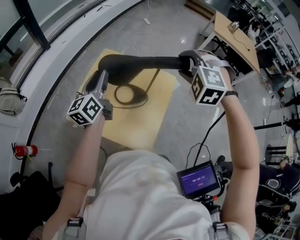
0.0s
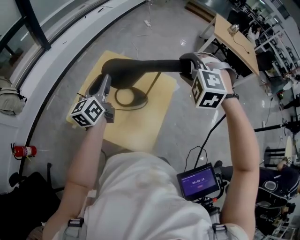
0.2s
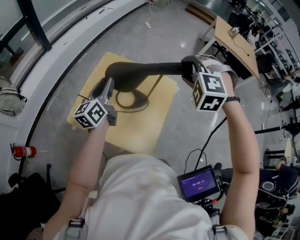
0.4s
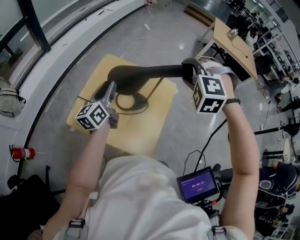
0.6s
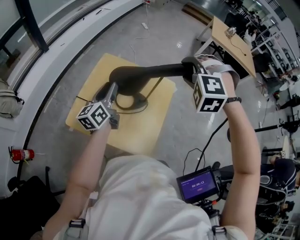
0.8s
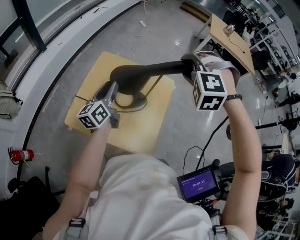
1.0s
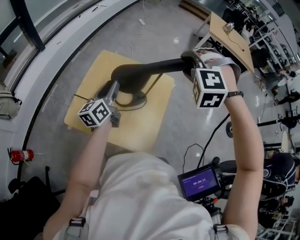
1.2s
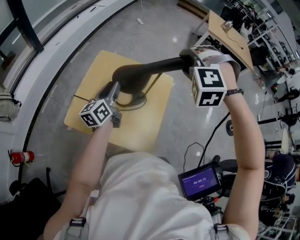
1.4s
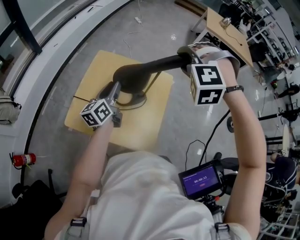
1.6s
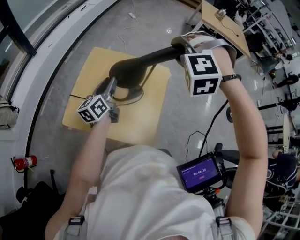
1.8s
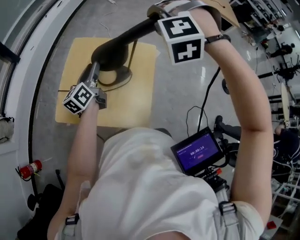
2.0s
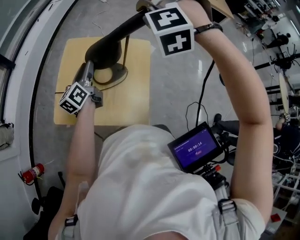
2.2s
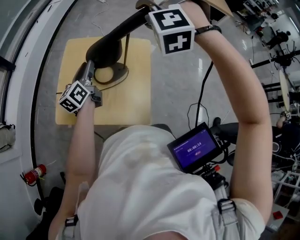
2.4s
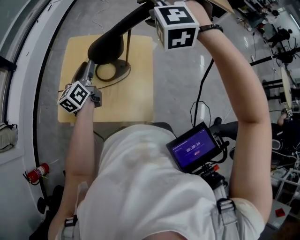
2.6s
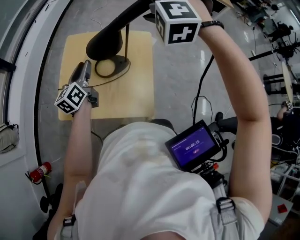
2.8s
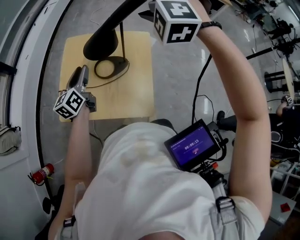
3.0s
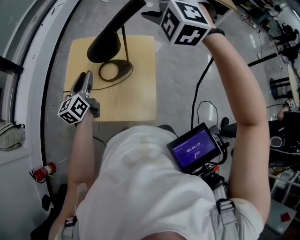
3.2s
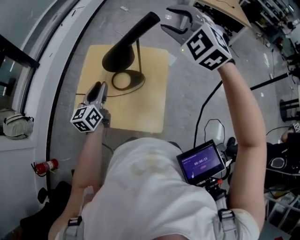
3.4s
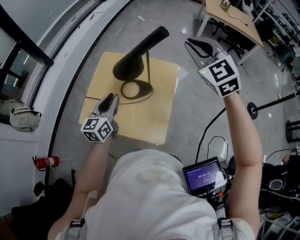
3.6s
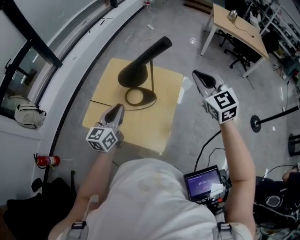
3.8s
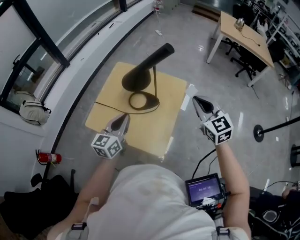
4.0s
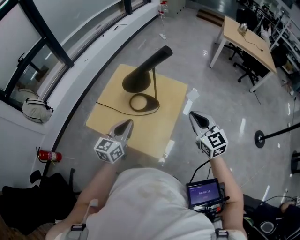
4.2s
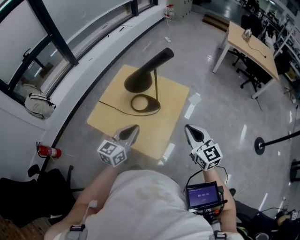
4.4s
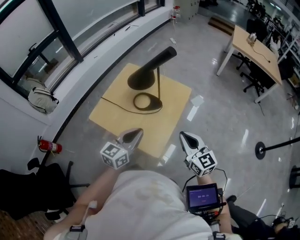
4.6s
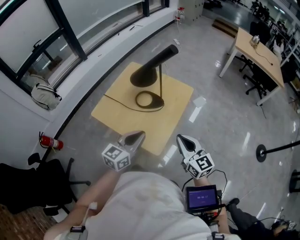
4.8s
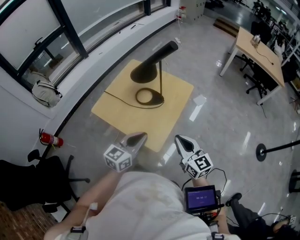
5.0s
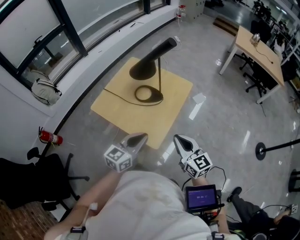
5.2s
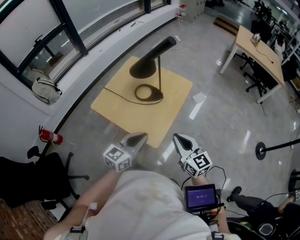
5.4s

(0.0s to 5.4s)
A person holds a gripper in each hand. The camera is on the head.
0.0s - 1.4s: The left gripper goes approximately 10 cm downward.
1.4s - 2.8s: The grippers move only a little.
2.8s - 4.0s: The left gripper travels backward and to the right by roughly 15 cm, and closes up. The right gripper is displaced to the right, backward and downward by about 20 cm, rolls clockwise, seen from behind, by approximately 70 degrees, and closes its fingers.
4.0s - 5.4s: The left gripper is displaced backward and to the right by some 20 cm. The right gripper travels backward and downward by about 20 cm, and swivels about 30 degrees.

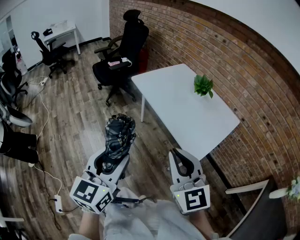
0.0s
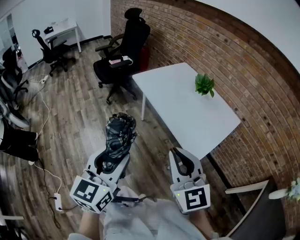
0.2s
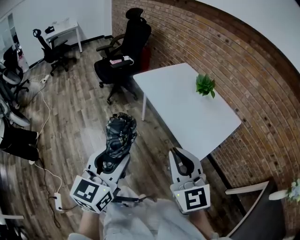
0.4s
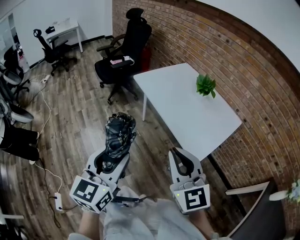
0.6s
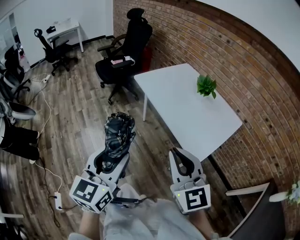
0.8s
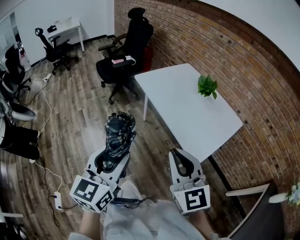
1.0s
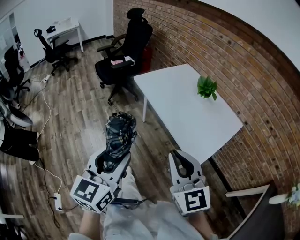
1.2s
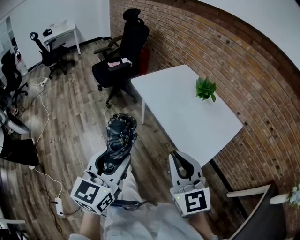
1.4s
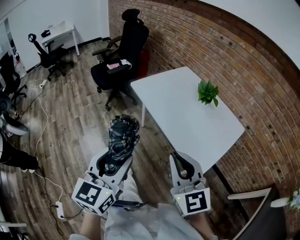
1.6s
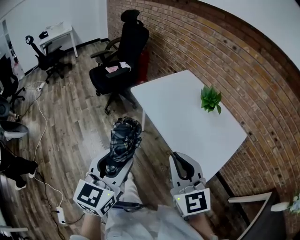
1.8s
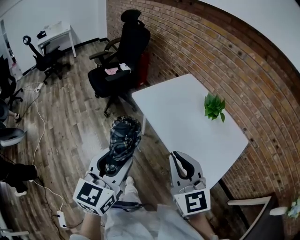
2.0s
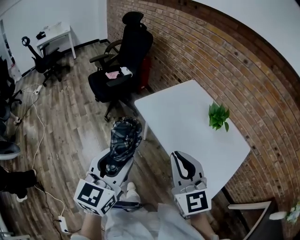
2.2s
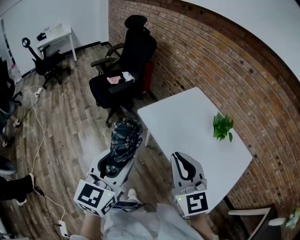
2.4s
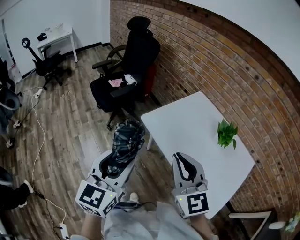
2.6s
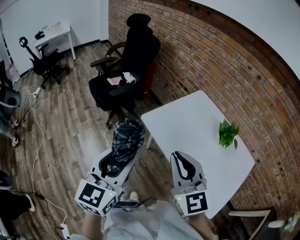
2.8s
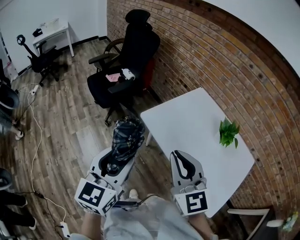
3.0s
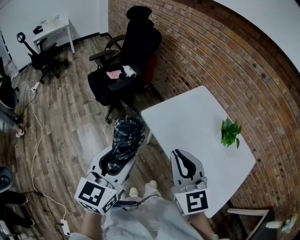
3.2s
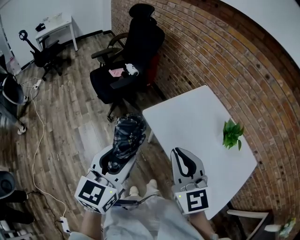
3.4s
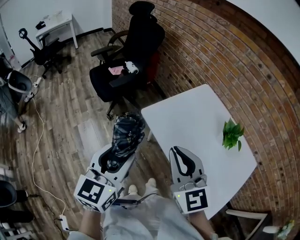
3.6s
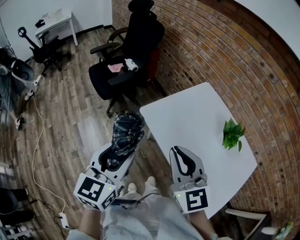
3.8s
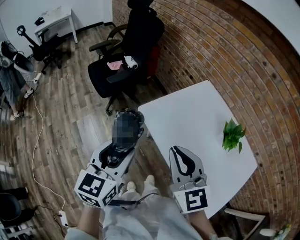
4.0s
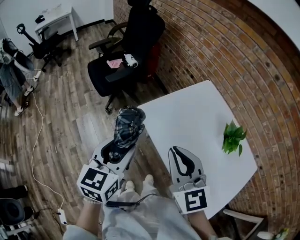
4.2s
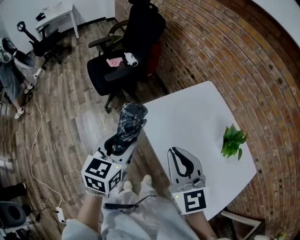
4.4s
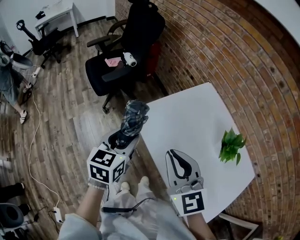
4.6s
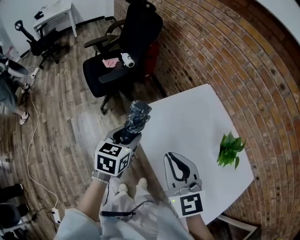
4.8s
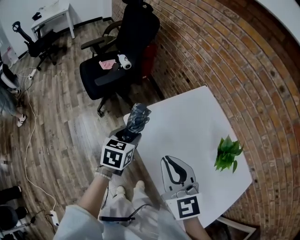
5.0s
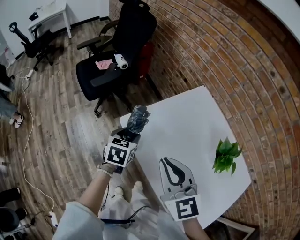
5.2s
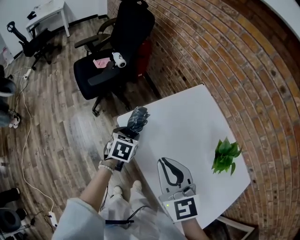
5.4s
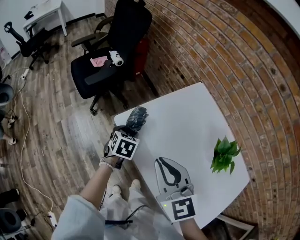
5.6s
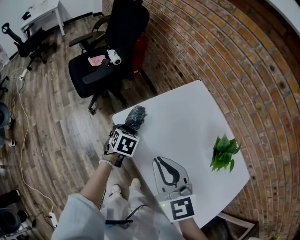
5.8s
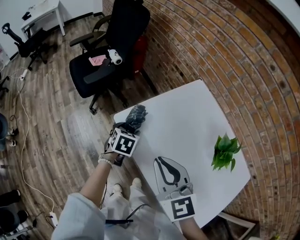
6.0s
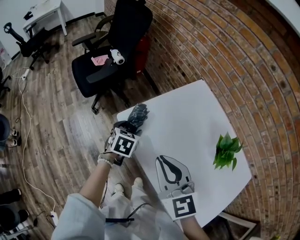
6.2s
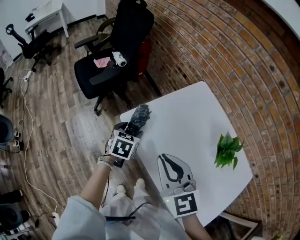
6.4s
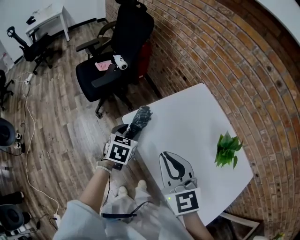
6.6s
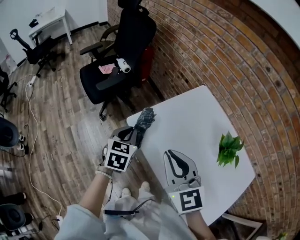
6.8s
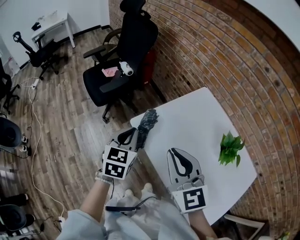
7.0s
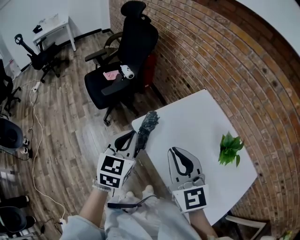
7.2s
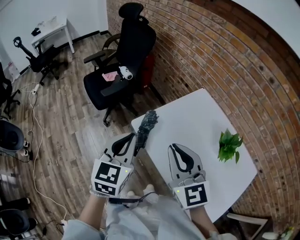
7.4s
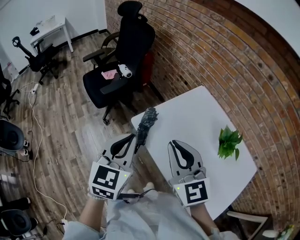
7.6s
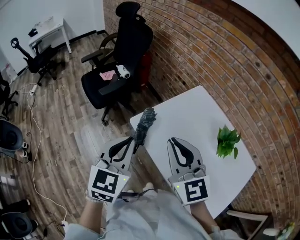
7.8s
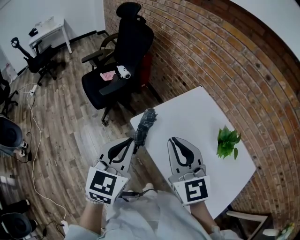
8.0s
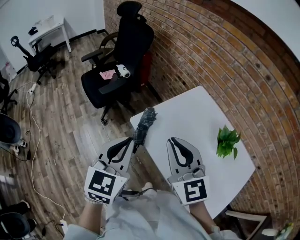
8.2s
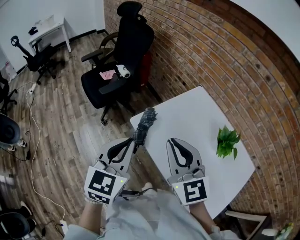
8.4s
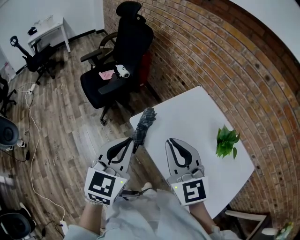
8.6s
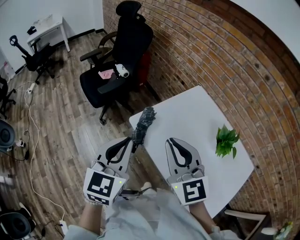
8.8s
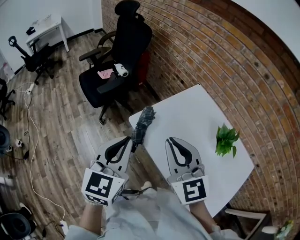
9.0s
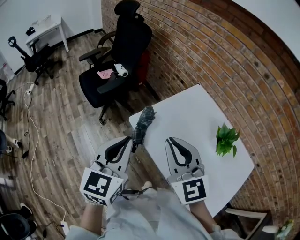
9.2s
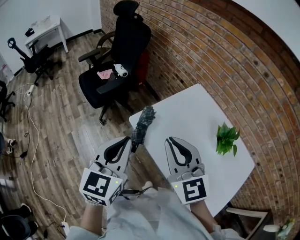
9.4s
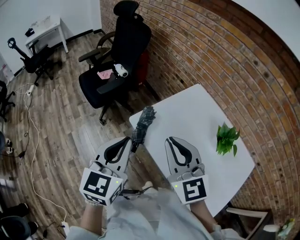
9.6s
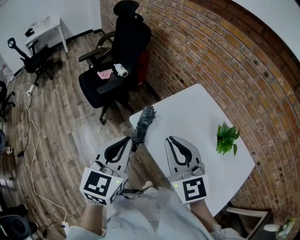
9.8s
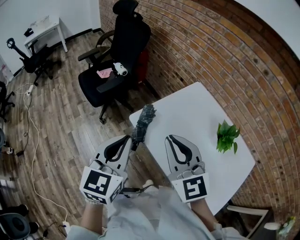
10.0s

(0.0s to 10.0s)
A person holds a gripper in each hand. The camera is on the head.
0.0s - 1.4s: The left gripper heads forward, covering some 5 cm.
1.4s - 2.8s: Both grippers travel together forward and to the left, roughly 40 cm.
2.8s - 4.2s: The left gripper is displaced forward, downward and to the right by approximately 15 cm. The right gripper shifts approximately 10 cm forward.
4.2s - 5.8s: The right gripper heads forward, downward and to the right, covering some 15 cm. The left gripper goes approximately 35 cm downward, forward and to the right, and tilts its fingers some 40 degrees downward.
5.8s - 7.2s: The right gripper moves upward, roughly 10 cm. The left gripper travels upward by approximately 25 cm, points its fingers about 30 degrees further upward, and closes its fingers.
7.2s - 8.6s: The left gripper travels backward and upward by some 10 cm.
8.6s - 10.0s: There are only small adjustments of the grippers.

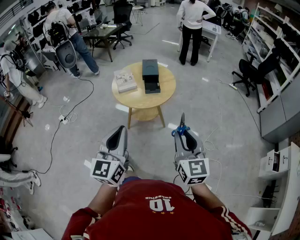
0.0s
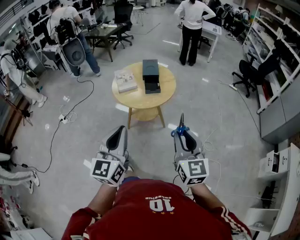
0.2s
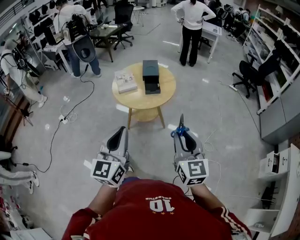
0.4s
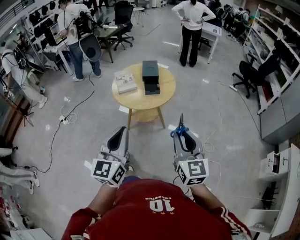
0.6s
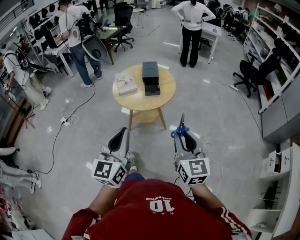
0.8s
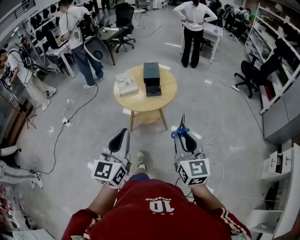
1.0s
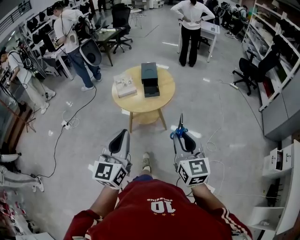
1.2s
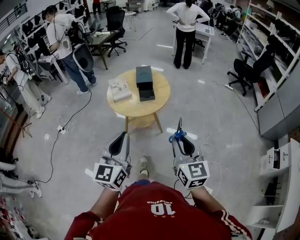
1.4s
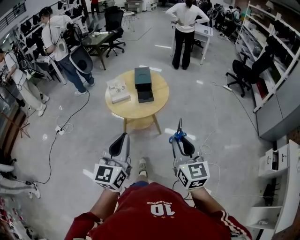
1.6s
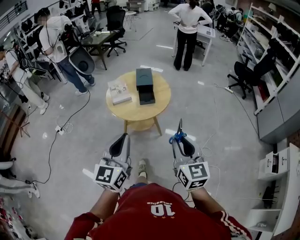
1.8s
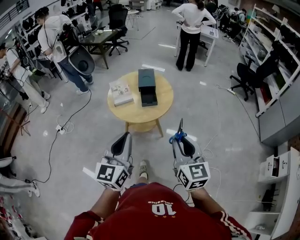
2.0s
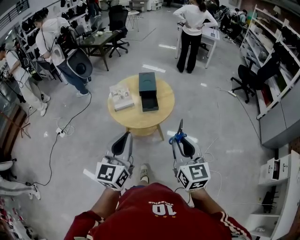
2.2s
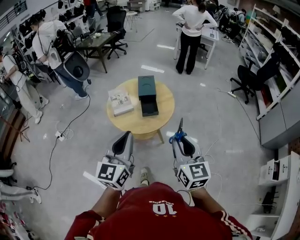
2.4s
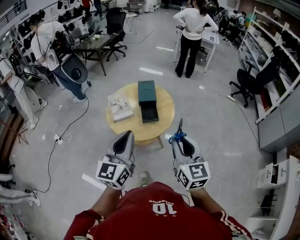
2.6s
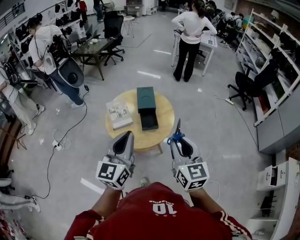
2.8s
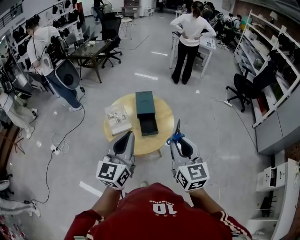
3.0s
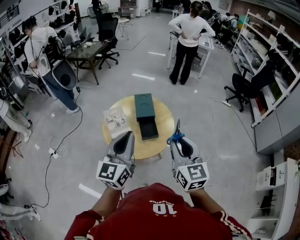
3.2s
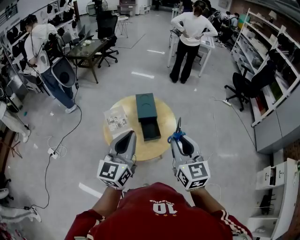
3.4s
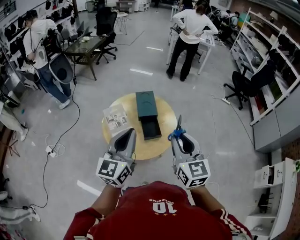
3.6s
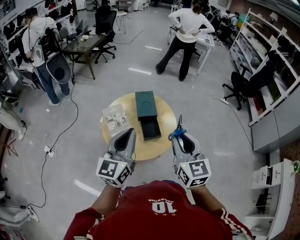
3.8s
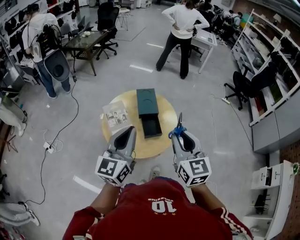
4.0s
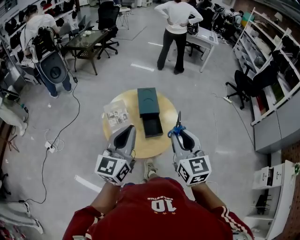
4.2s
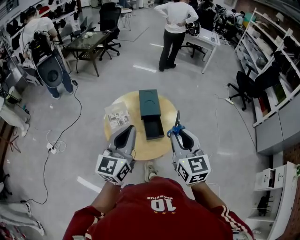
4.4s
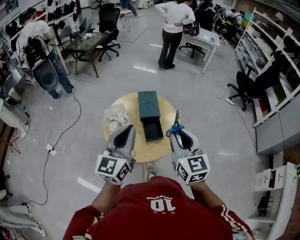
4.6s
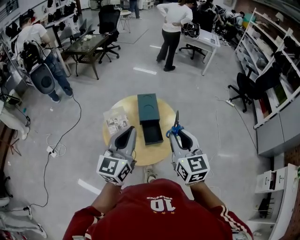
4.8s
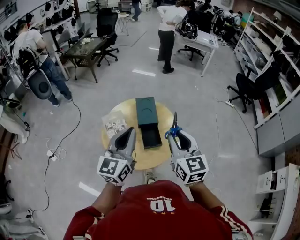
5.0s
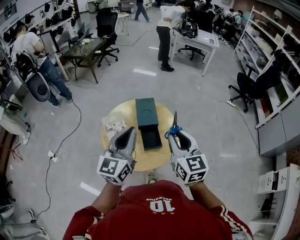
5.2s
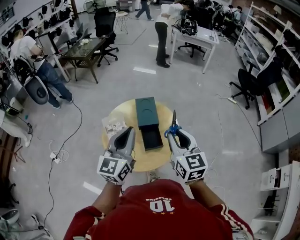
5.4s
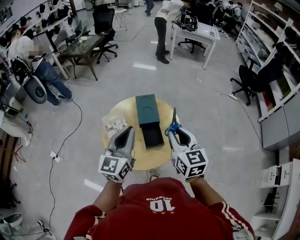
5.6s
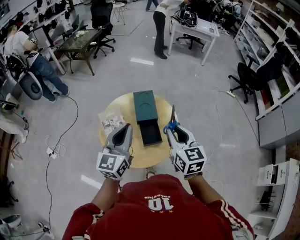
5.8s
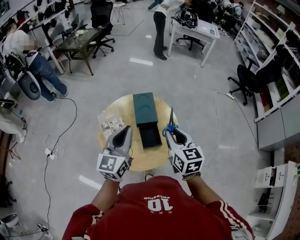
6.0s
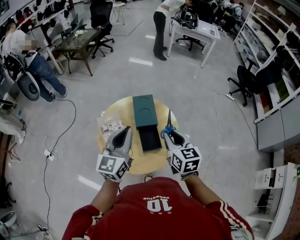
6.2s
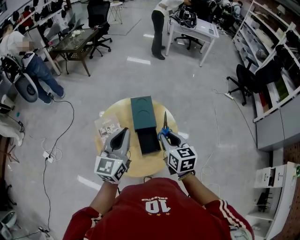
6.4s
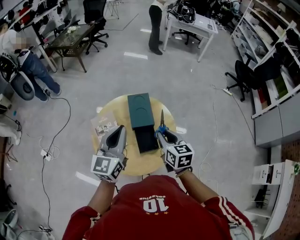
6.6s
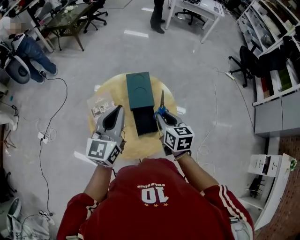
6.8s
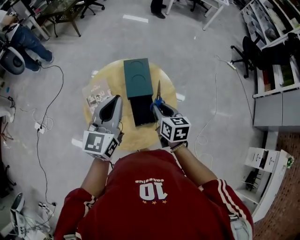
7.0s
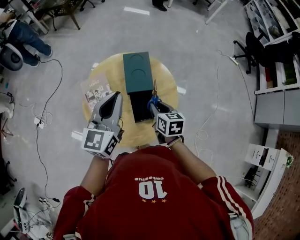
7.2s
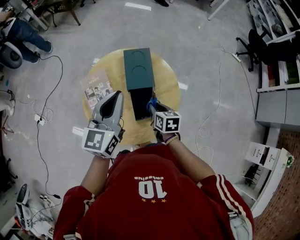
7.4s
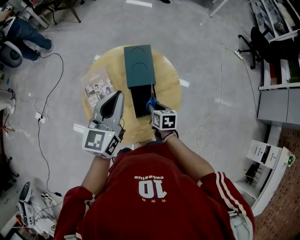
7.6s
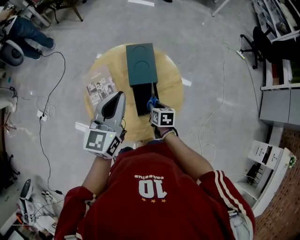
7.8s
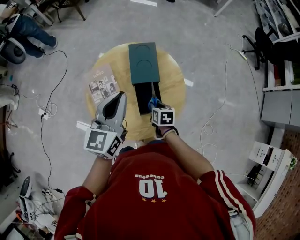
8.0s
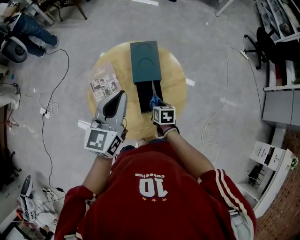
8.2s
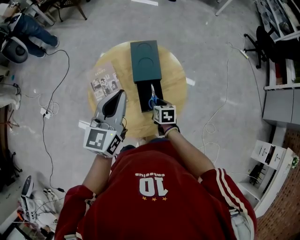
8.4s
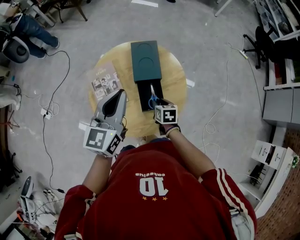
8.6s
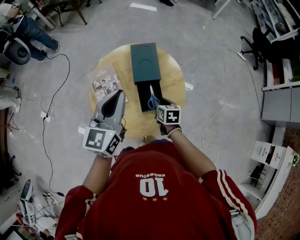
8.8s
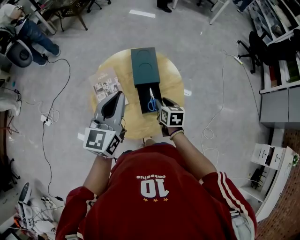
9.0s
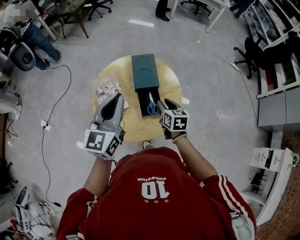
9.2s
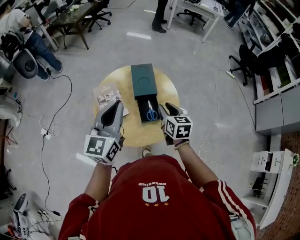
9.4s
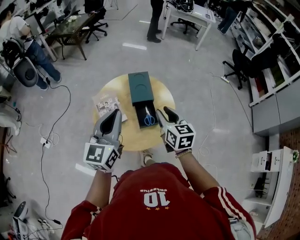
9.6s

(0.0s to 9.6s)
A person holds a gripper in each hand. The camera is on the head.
0.0s - 1.6s: The grippers move only a little.
1.6s - 3.2s: Both grippers travel together forward, roughly 30 cm.
3.2s - 4.8s: Both grippers move forward, some 10 cm.
4.8s - 6.4s: The right gripper heads downward and forward, covering some 20 cm, and swivels about 20 degrees. Meanwhile the left gripper goes roughly 15 cm forward and downward.
6.4s - 8.0s: The right gripper travels downward by about 30 cm, and swivels roughly 30 degrees. The left gripper moves downward, about 5 cm.
8.0s - 9.6s: The right gripper travels upward by approximately 30 cm, and tilts its fingers some 30 degrees upward. The left gripper shifts some 15 cm backward and upward.
